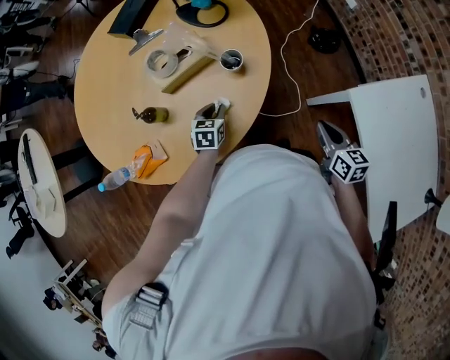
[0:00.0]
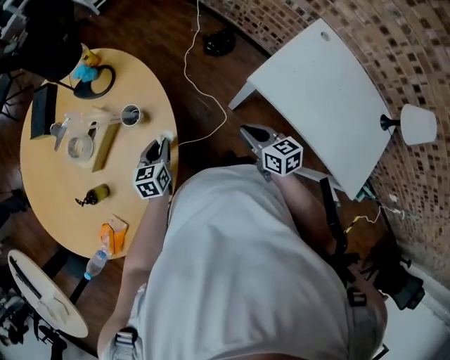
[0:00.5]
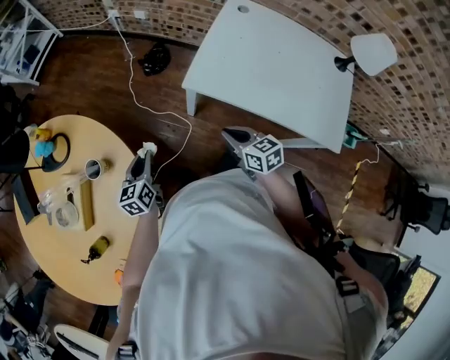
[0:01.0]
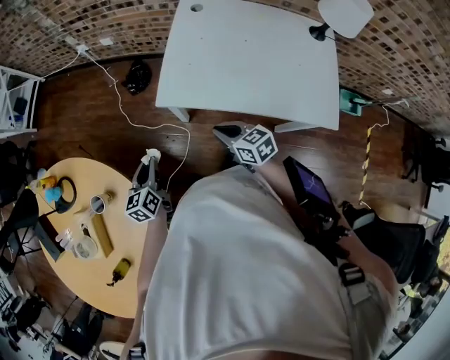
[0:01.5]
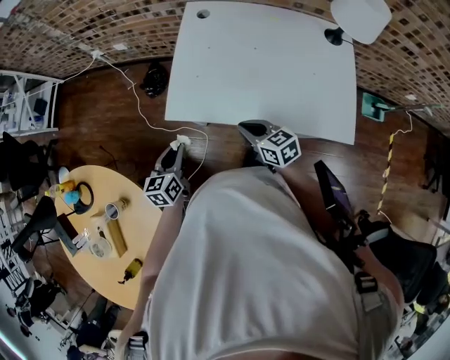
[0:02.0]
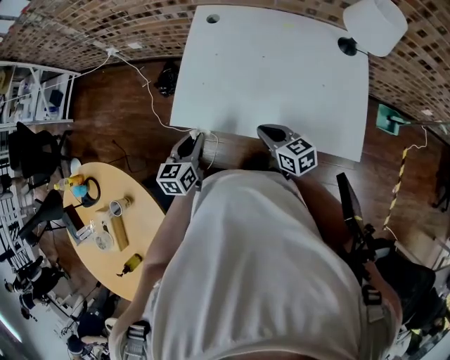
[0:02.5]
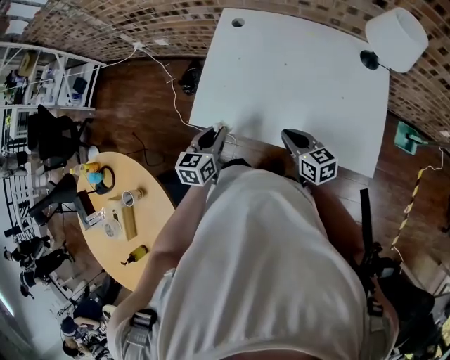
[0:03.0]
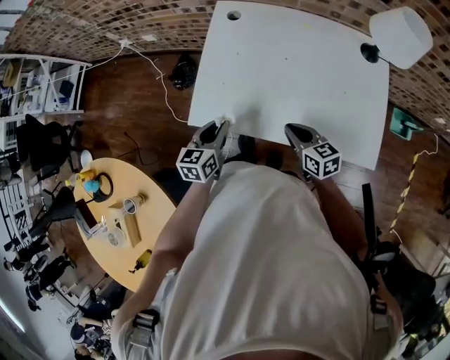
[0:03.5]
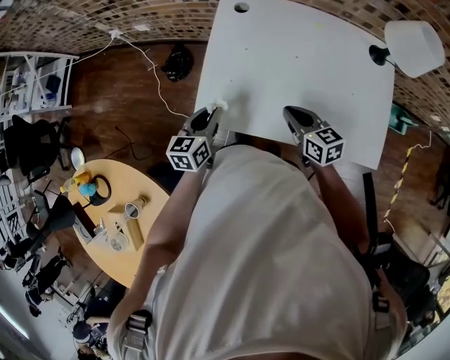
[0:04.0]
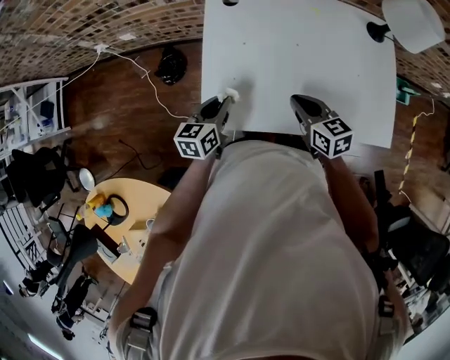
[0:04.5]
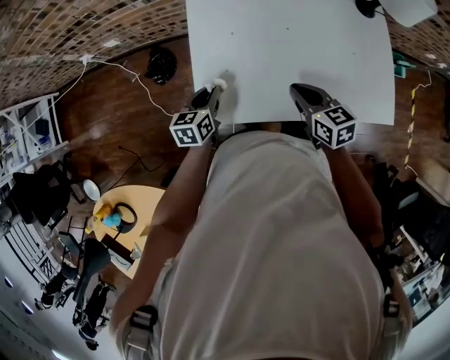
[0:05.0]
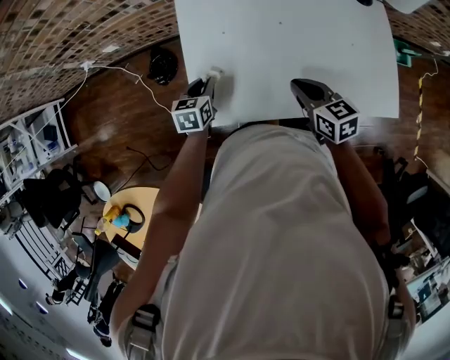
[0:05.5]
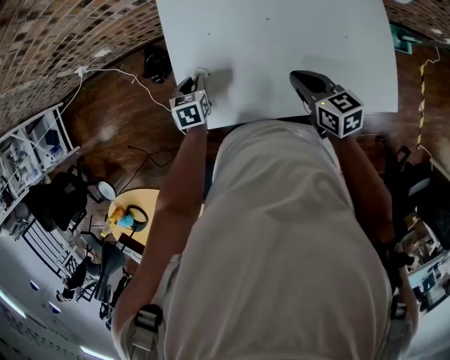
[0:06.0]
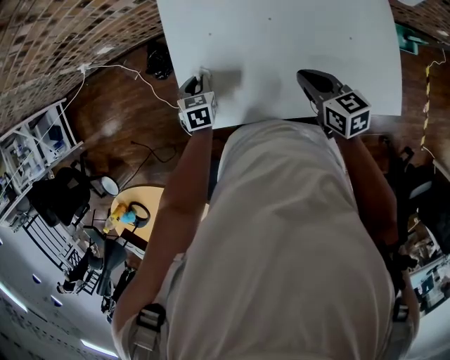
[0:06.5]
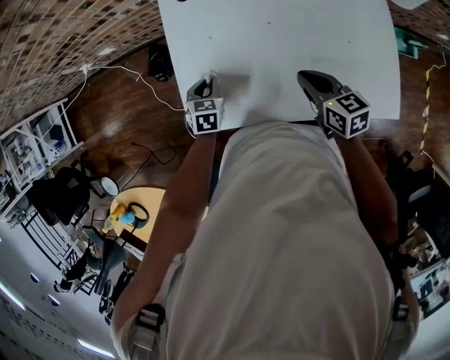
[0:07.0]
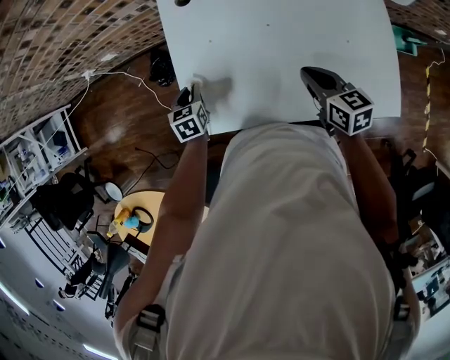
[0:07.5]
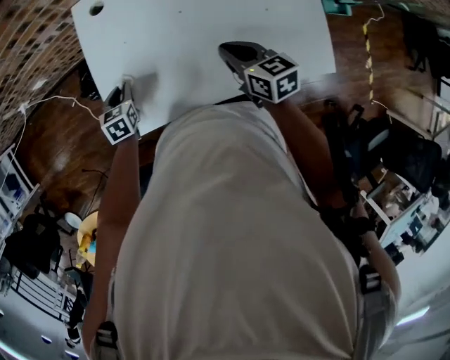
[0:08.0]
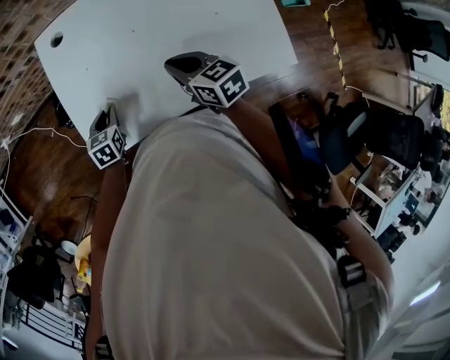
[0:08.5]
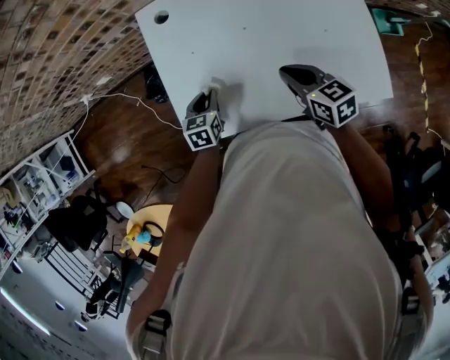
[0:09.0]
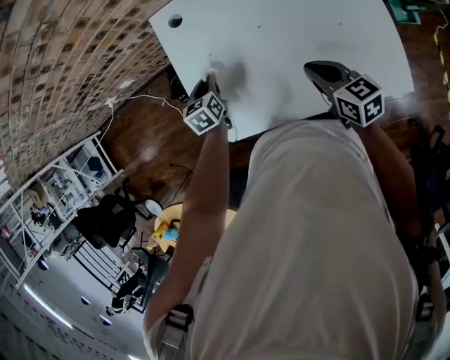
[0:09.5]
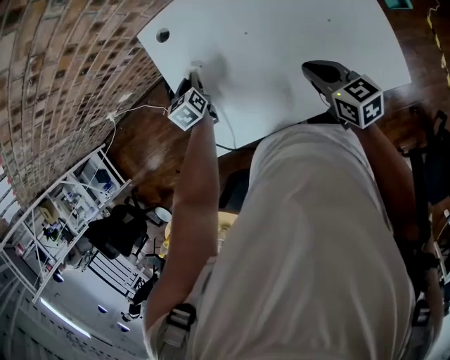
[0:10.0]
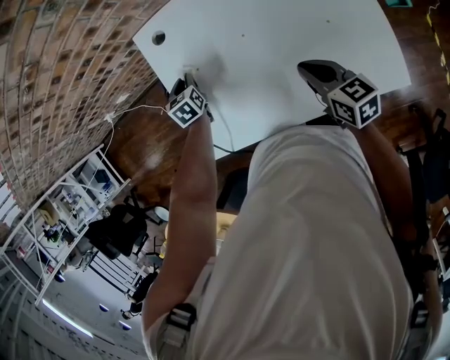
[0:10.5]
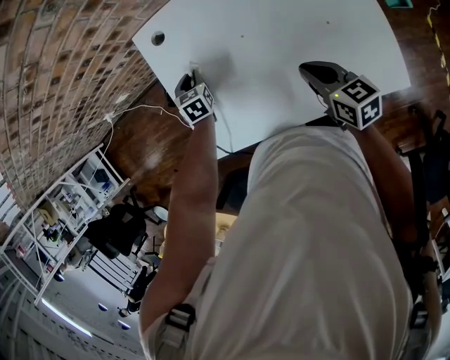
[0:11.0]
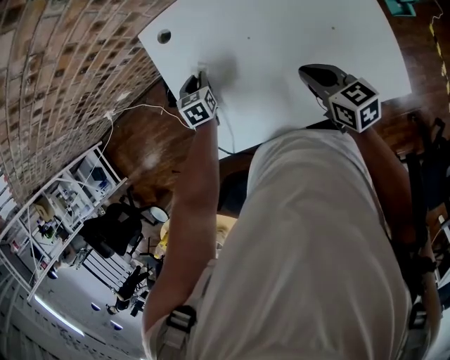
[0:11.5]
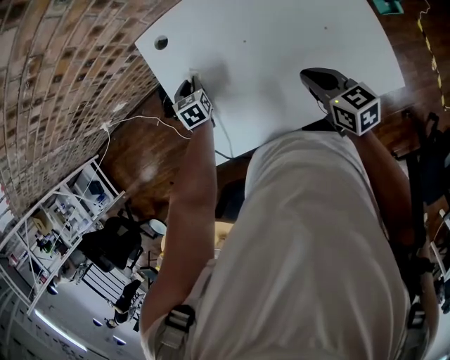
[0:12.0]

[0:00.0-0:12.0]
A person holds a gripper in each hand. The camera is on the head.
0:00.0 to 0:02.0: The right gripper ends up roughly 30 cm from where it was, and swivels approximately 40 degrees. The left gripper ends up about 50 cm from where it was, and swivels approximately 50 degrees.
0:02.0 to 0:04.0: The right gripper travels forward and to the right by some 15 cm, while the left gripper shifts roughly 15 cm forward.
0:04.0 to 0:06.0: The left gripper travels forward and downward by roughly 15 cm, and rotates about 30 degrees. The right gripper shifts about 5 cm to the right.
0:06.0 to 0:08.0: The grippers stay close to where they were, moving slightly.
0:08.0 to 0:10.0: The left gripper heads forward and to the right, covering approximately 15 cm, while the right gripper moves to the right, some 5 cm.
0:10.0 to 0:12.0: The grippers move only a little.

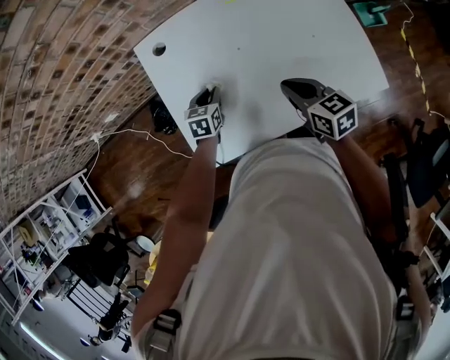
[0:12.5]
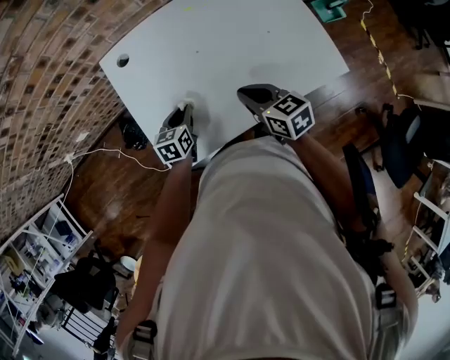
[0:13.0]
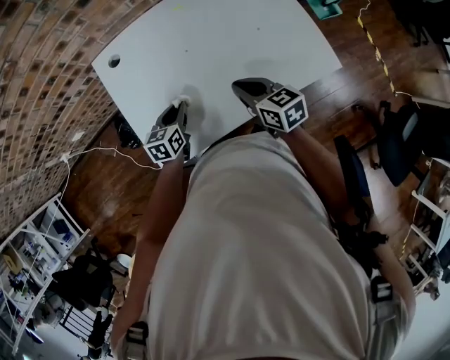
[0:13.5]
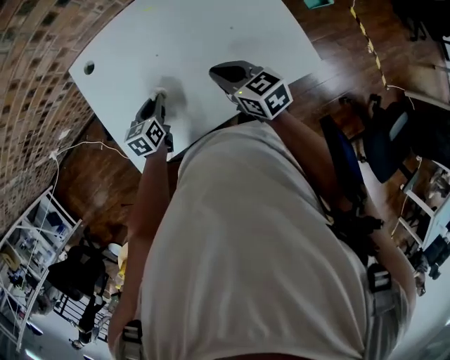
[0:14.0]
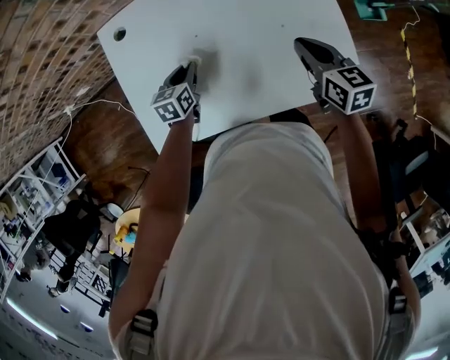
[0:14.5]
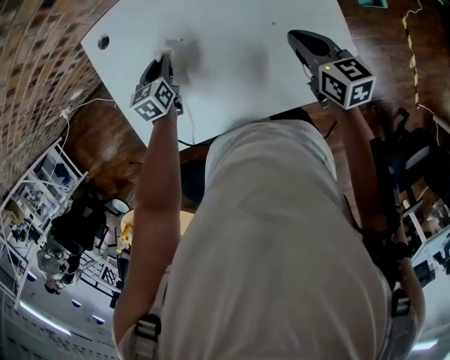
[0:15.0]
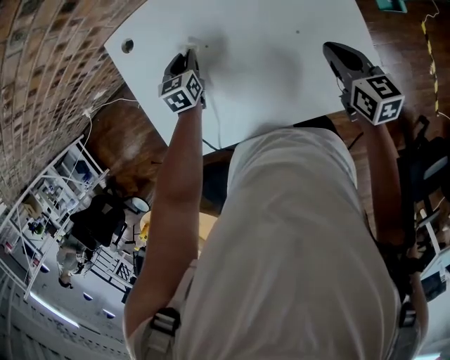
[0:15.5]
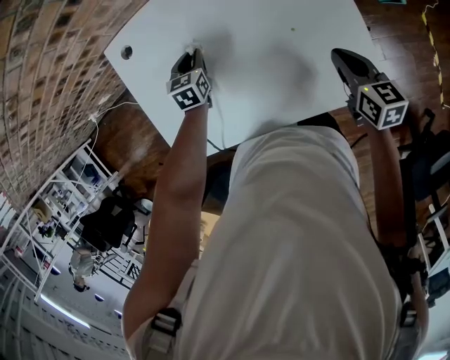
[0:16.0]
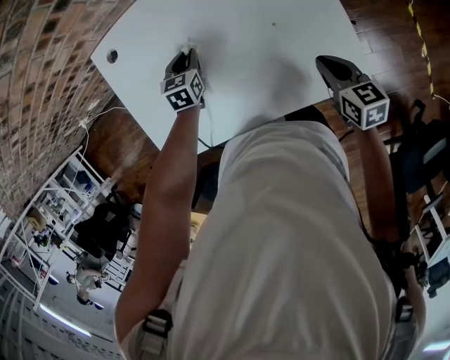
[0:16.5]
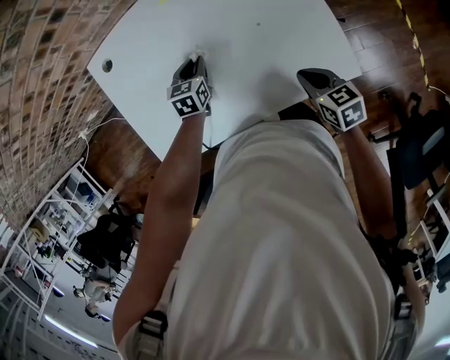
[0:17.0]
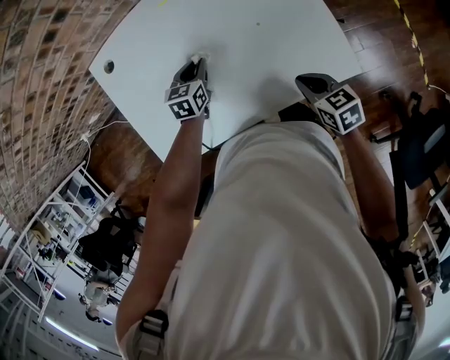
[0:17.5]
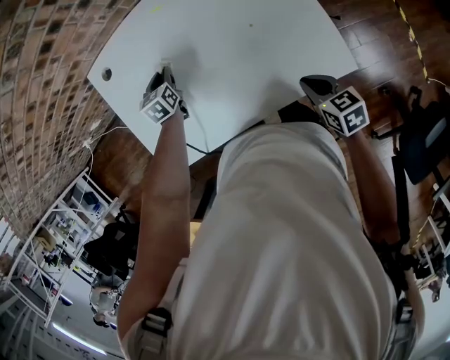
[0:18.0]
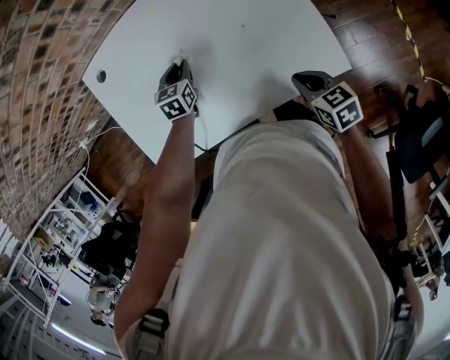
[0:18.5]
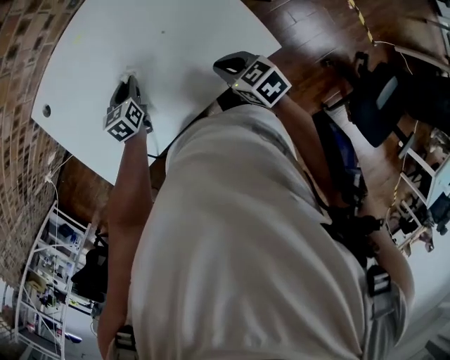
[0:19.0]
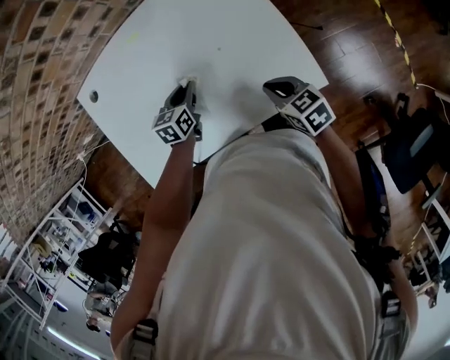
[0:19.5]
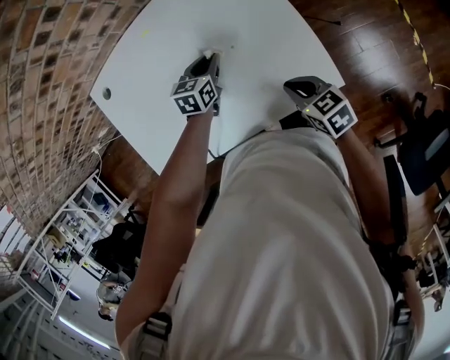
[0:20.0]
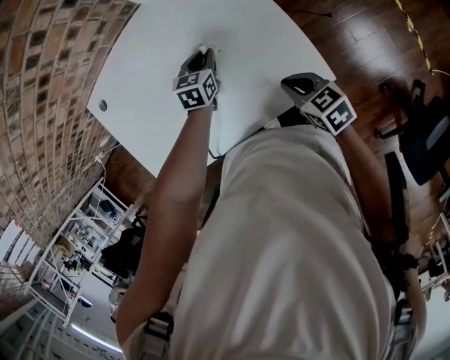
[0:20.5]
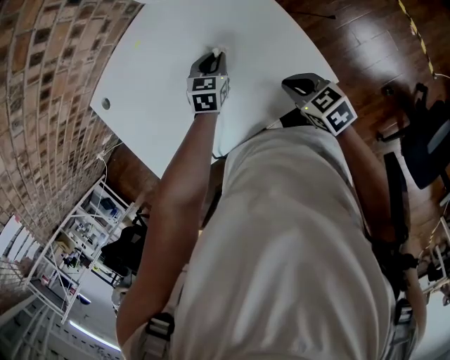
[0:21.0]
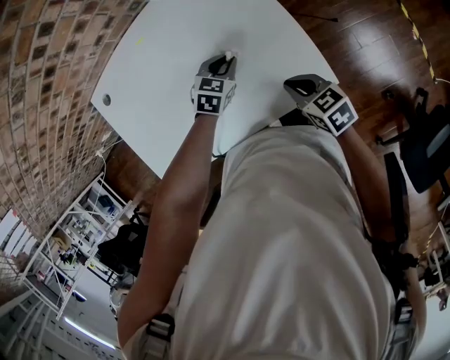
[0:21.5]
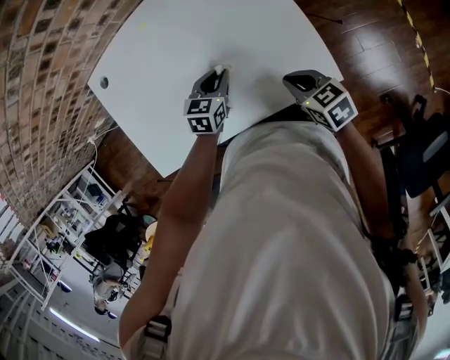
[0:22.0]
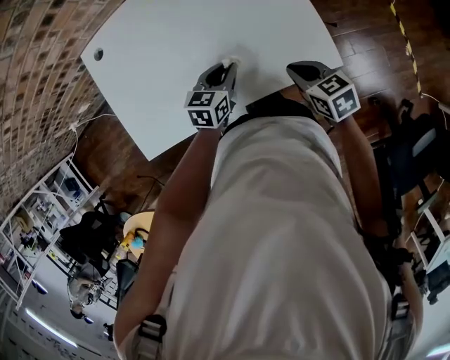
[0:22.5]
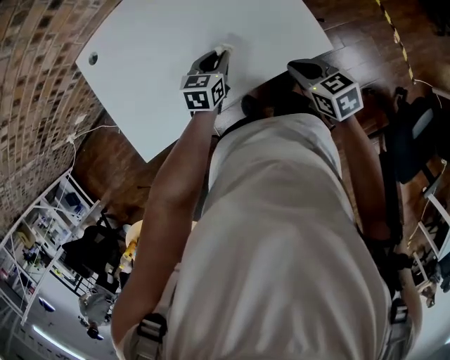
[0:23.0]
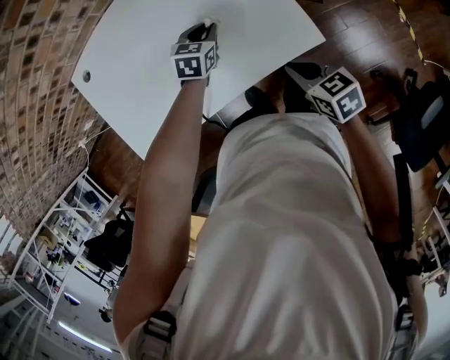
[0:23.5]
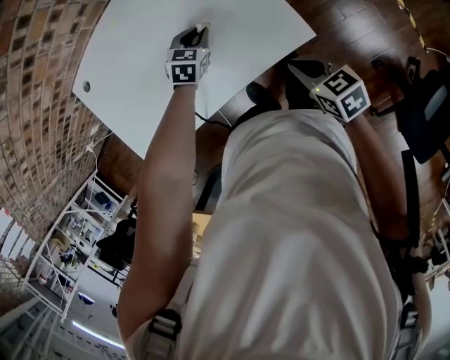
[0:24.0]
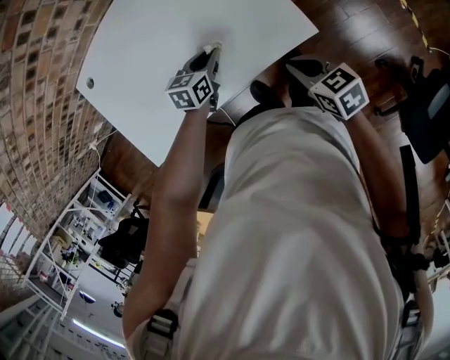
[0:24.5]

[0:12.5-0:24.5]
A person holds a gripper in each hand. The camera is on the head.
0:12.5 to 0:14.5: The left gripper goes some 10 cm to the right. The right gripper heads to the right, covering roughly 20 cm.
0:14.5 to 0:16.5: The right gripper moves downward and to the right, some 10 cm. Meanwhile the left gripper moves forward, about 5 cm.
0:16.5 to 0:18.5: The right gripper heads backward, covering roughly 5 cm; the left gripper swings left and right, approximately 10 cm each way, with 2 reversals.
0:18.5 to 0:20.5: The left gripper shifts some 20 cm to the right; the right gripper travels to the right by about 5 cm.
0:20.5 to 0:22.5: The left gripper goes some 15 cm backward; the right gripper shifts by some 5 cm.
0:22.5 to 0:24.5: The right gripper is displaced to the right and backward by approximately 10 cm. The left gripper reaches approximately 10 cm forward, then returns.

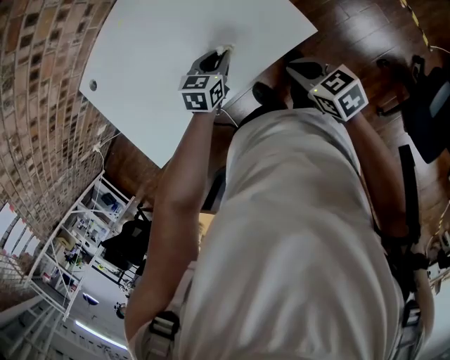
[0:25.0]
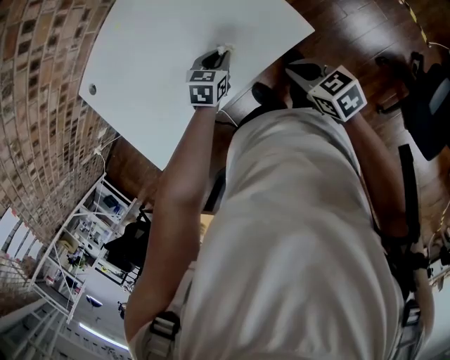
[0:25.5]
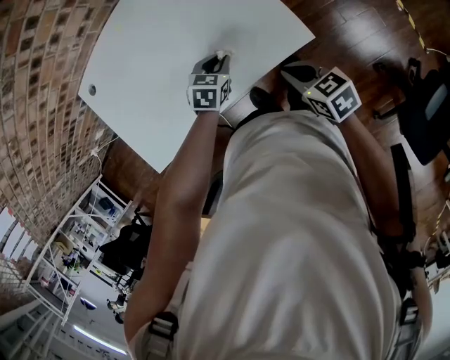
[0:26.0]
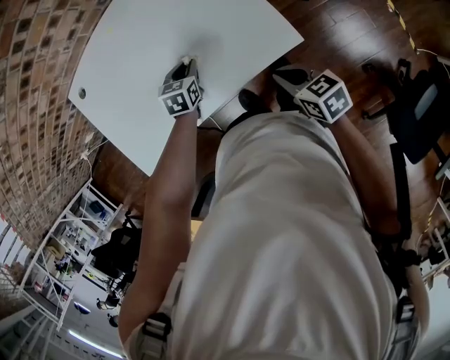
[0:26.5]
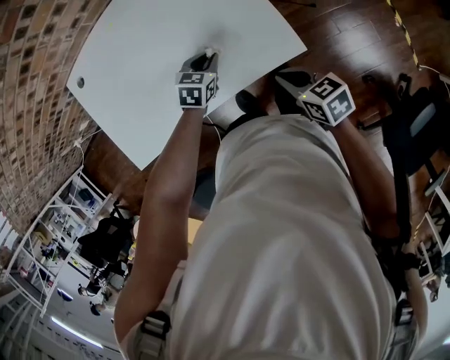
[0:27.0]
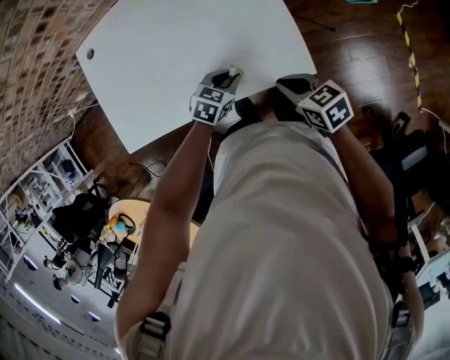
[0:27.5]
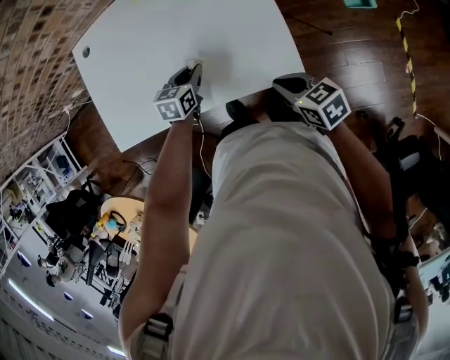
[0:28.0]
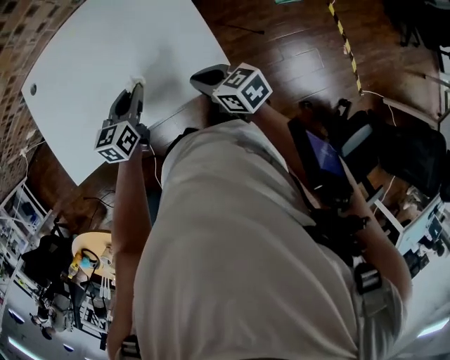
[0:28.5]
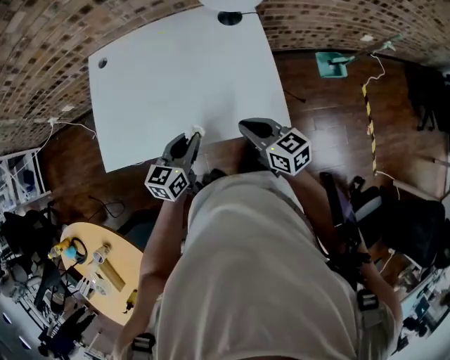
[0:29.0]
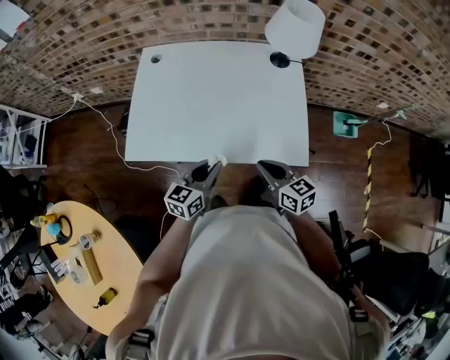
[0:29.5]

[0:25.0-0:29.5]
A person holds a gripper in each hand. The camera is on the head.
0:25.0 to 0:27.0: The left gripper reaches approximately 5 cm to the left, then returns.
0:27.0 to 0:29.5: The left gripper goes left and right, roughly 15 cm each way, reversing 2 times, and tips its fingers upward by about 30 degrees. Meanwhile the right gripper heads to the left and upward, covering about 15 cm, and changes its angle by about 30 degrees.
